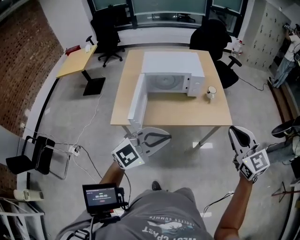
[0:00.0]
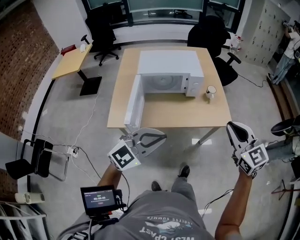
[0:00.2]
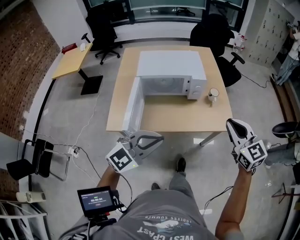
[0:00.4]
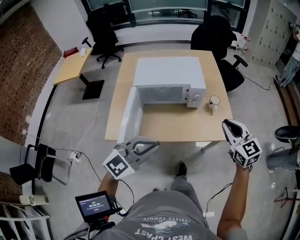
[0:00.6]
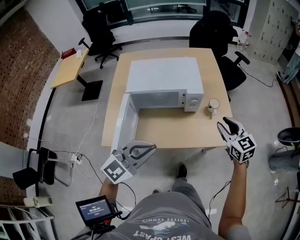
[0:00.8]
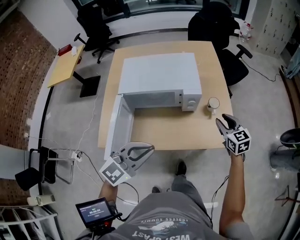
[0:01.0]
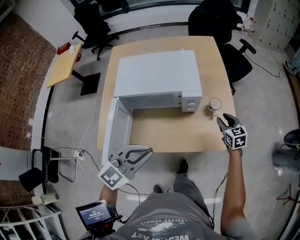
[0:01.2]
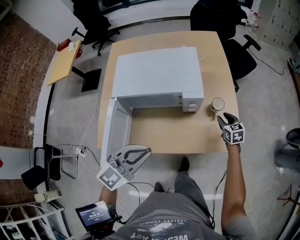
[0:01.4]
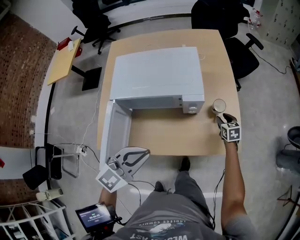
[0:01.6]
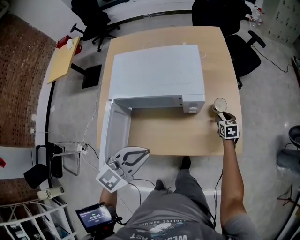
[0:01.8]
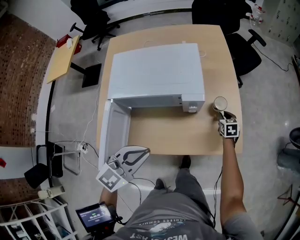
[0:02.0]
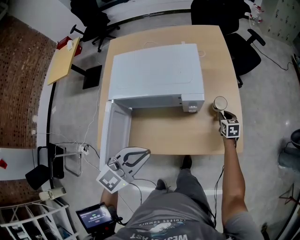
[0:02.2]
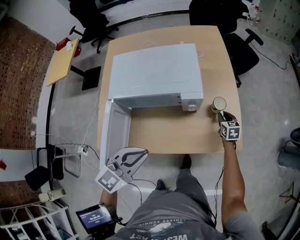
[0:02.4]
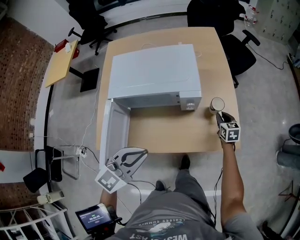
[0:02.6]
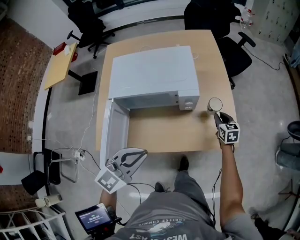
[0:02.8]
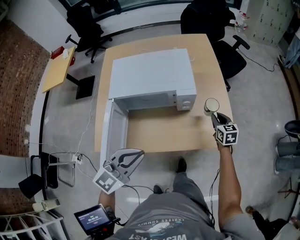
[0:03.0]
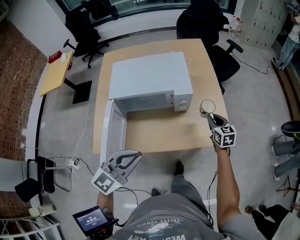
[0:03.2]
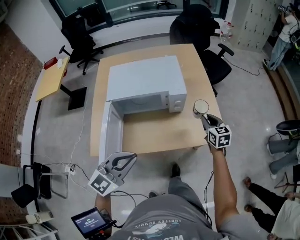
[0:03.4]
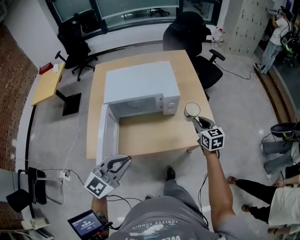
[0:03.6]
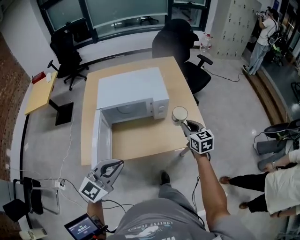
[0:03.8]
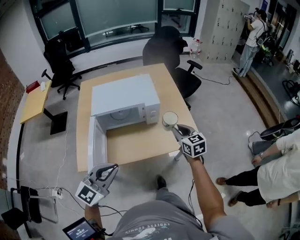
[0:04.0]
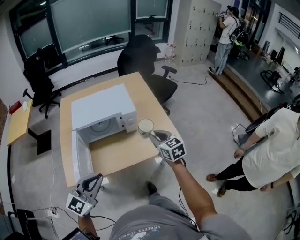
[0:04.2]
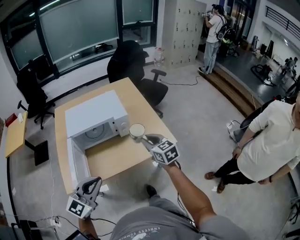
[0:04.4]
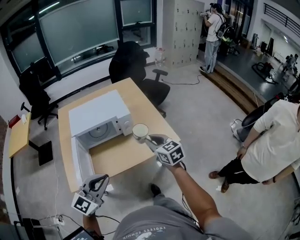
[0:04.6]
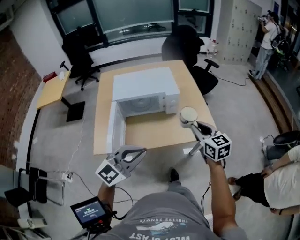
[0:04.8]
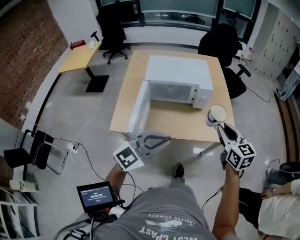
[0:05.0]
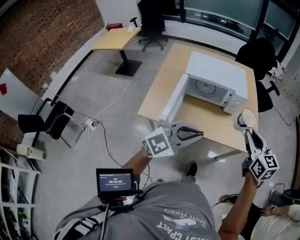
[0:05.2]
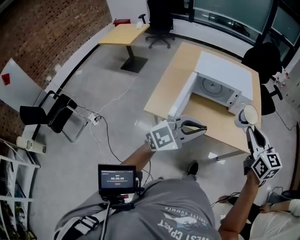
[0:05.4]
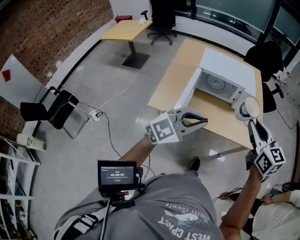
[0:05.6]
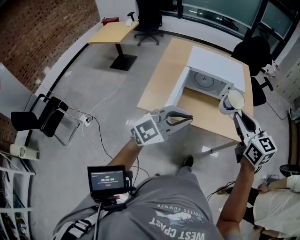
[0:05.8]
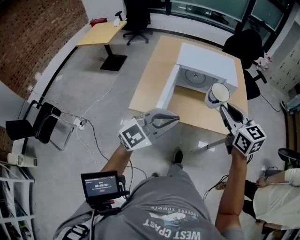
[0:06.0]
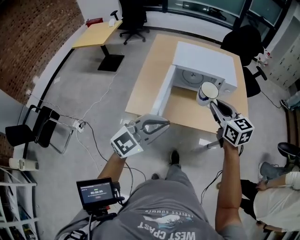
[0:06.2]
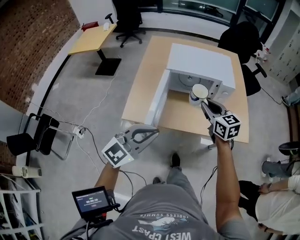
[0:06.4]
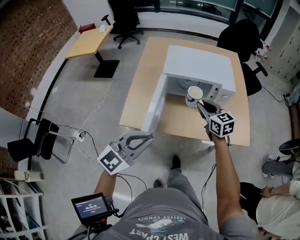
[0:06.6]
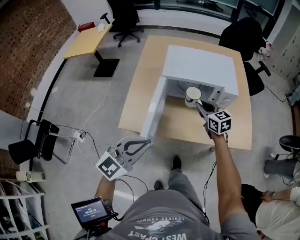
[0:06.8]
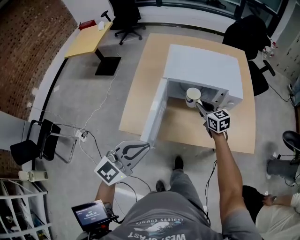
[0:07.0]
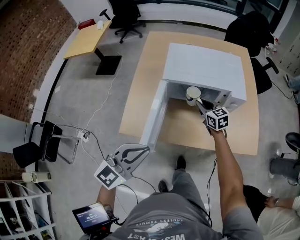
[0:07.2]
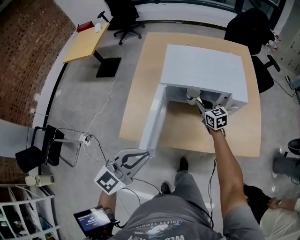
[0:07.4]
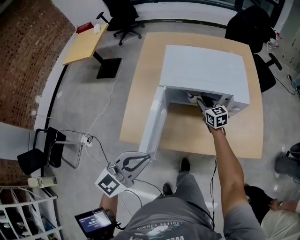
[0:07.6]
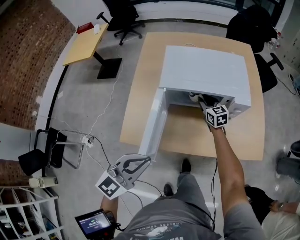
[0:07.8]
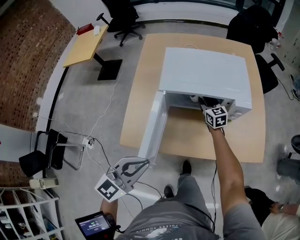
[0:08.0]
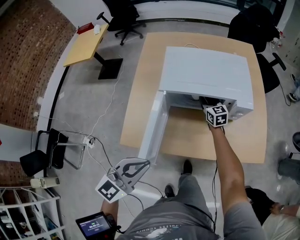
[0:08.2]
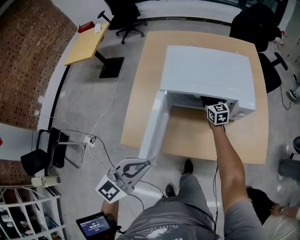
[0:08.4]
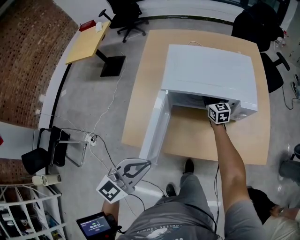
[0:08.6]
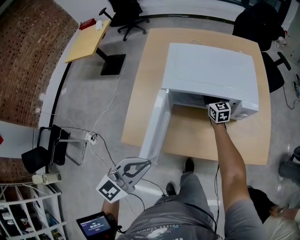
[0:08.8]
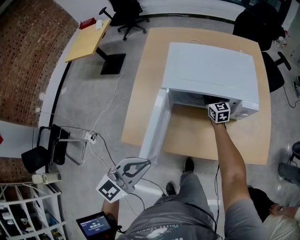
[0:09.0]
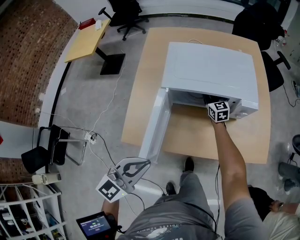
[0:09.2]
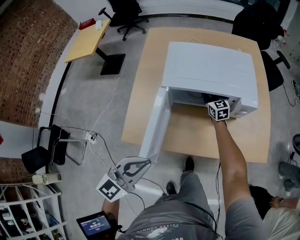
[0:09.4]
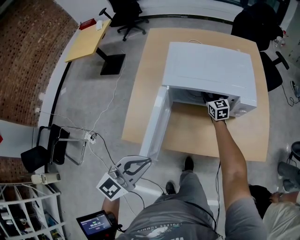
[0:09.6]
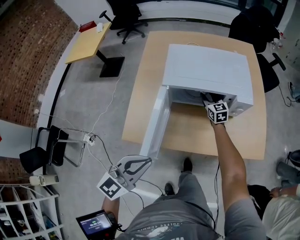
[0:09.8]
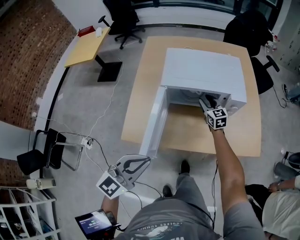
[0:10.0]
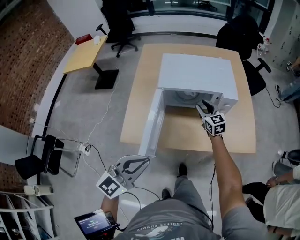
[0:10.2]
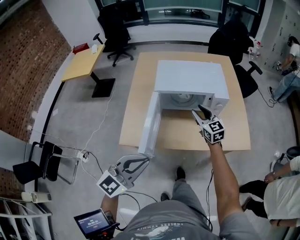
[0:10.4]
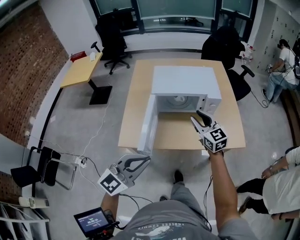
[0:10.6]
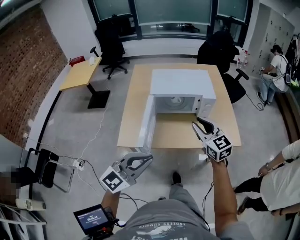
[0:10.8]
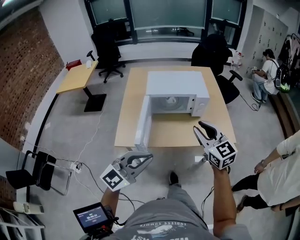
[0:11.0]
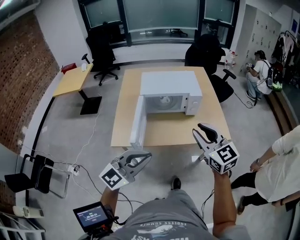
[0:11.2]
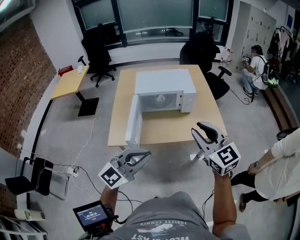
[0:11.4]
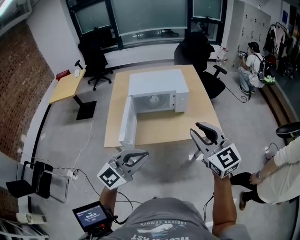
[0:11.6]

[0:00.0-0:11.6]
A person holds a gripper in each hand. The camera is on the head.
0:00.0 to 0:01.4: The right gripper heads forward and downward, covering approximately 60 cm, turns by about 40 degrees, and opens, while the left gripper is displaced forward by about 35 cm, and turns by approximately 20 degrees.
0:01.4 to 0:02.8: The right gripper moves roughly 10 cm downward and comes back.
0:02.8 to 0:04.4: The left gripper goes about 20 cm backward, while the right gripper travels backward and upward by some 35 cm.
0:04.4 to 0:05.8: The right gripper travels to the left, backward and upward by some 30 cm, and turns by some 20 degrees. The left gripper shifts some 15 cm backward and to the left.
0:05.8 to 0:07.2: The right gripper moves forward and downward, about 50 cm, while the left gripper goes about 15 cm forward and downward, and turns by roughly 20 degrees.
0:07.2 to 0:08.8: The left gripper ends up roughly 5 cm from where it was; the right gripper travels forward and downward by some 15 cm.
0:08.8 to 0:10.2: The left gripper heads backward and upward, covering roughly 10 cm. Meanwhile the right gripper is displaced backward and upward by about 15 cm, and opens up.
0:10.2 to 0:11.6: The right gripper heads backward, upward and to the right, covering some 60 cm. Meanwhile the left gripper is displaced backward, to the right and upward by approximately 25 cm, and turns by roughly 20 degrees.

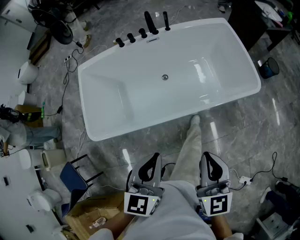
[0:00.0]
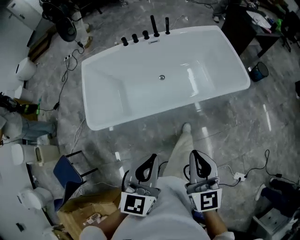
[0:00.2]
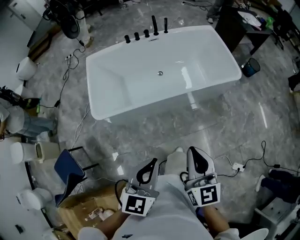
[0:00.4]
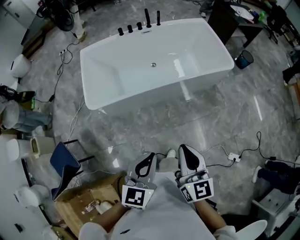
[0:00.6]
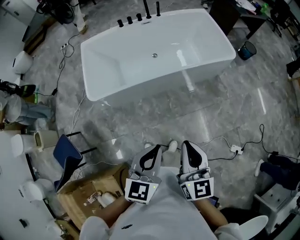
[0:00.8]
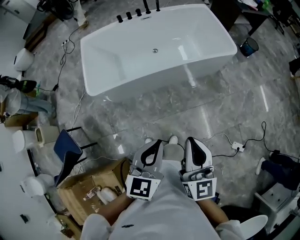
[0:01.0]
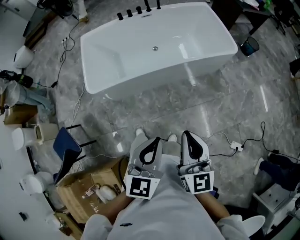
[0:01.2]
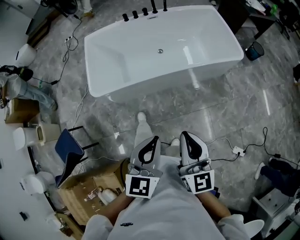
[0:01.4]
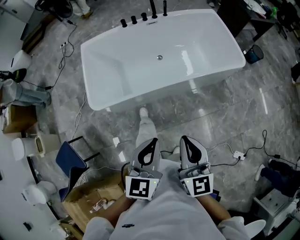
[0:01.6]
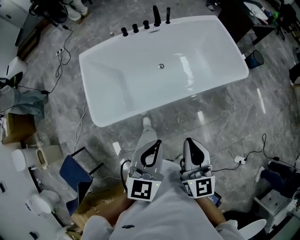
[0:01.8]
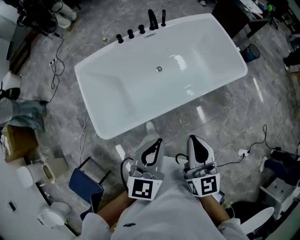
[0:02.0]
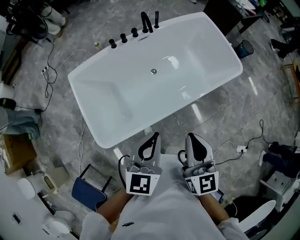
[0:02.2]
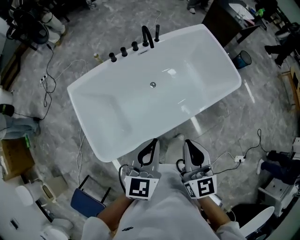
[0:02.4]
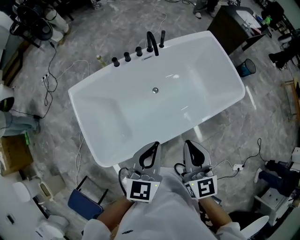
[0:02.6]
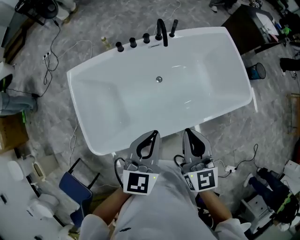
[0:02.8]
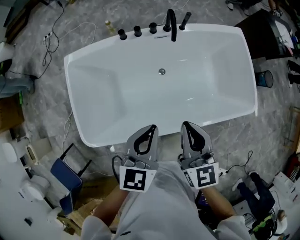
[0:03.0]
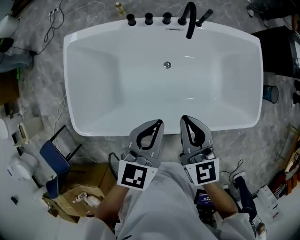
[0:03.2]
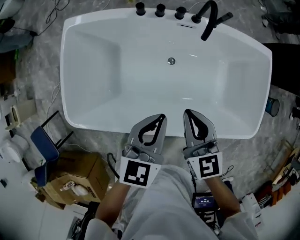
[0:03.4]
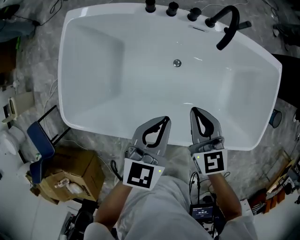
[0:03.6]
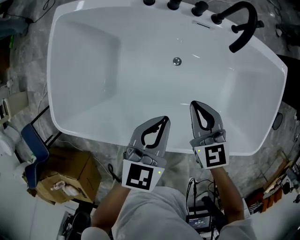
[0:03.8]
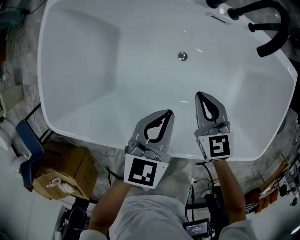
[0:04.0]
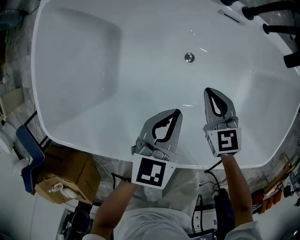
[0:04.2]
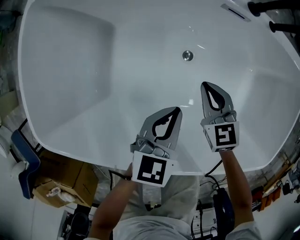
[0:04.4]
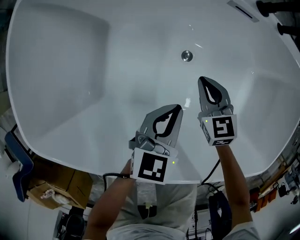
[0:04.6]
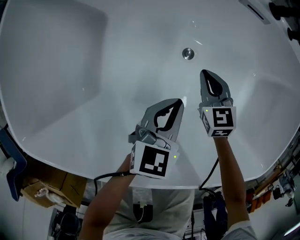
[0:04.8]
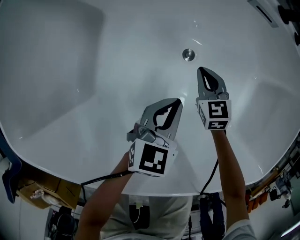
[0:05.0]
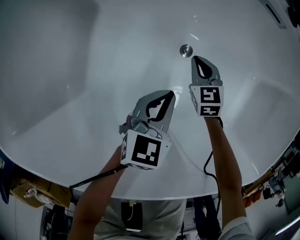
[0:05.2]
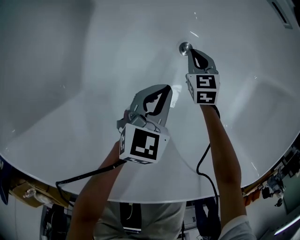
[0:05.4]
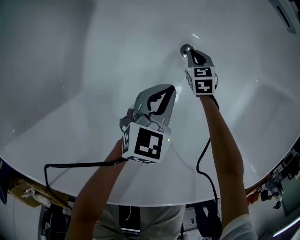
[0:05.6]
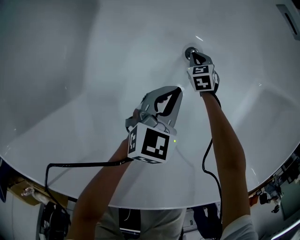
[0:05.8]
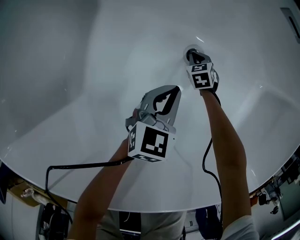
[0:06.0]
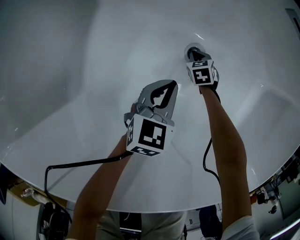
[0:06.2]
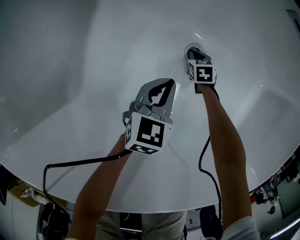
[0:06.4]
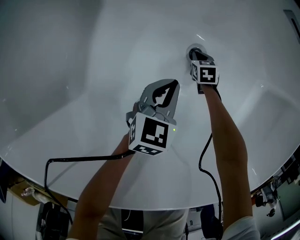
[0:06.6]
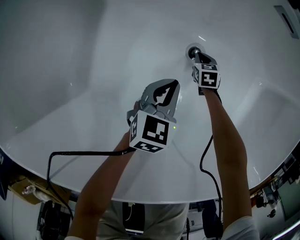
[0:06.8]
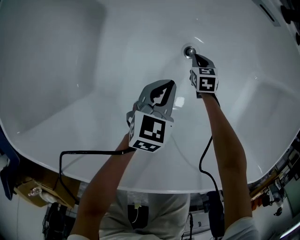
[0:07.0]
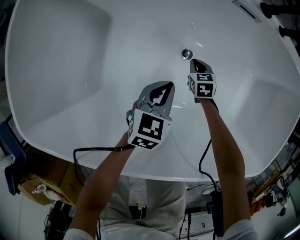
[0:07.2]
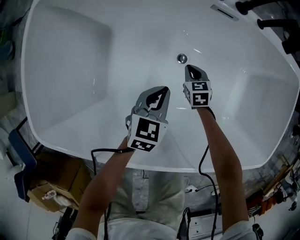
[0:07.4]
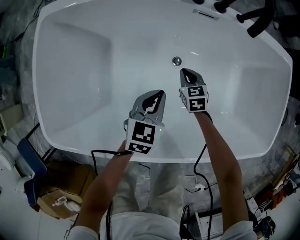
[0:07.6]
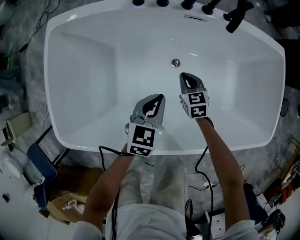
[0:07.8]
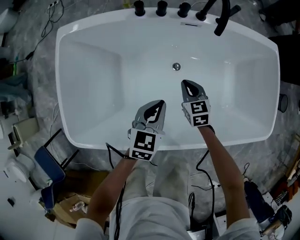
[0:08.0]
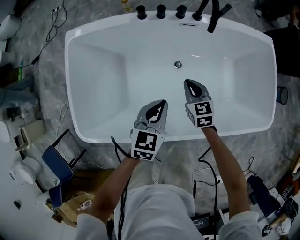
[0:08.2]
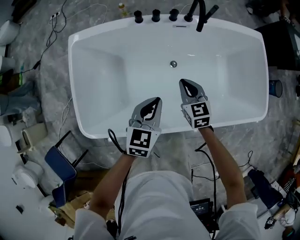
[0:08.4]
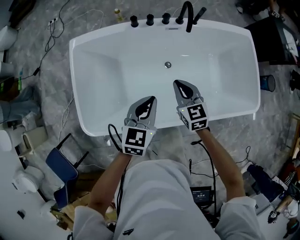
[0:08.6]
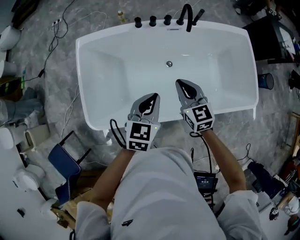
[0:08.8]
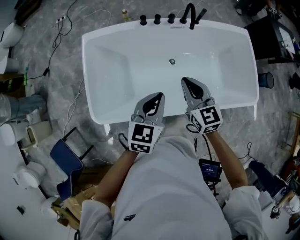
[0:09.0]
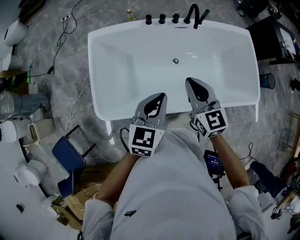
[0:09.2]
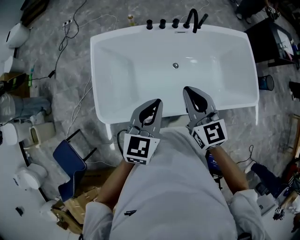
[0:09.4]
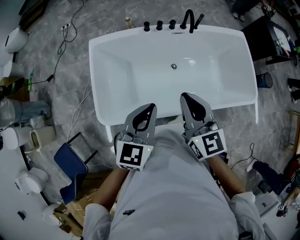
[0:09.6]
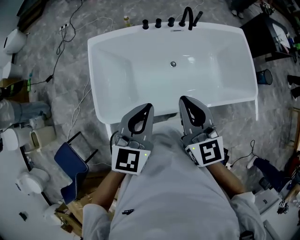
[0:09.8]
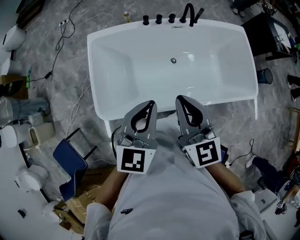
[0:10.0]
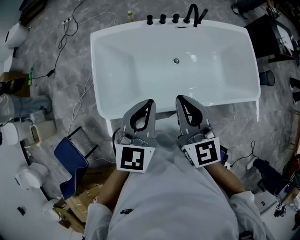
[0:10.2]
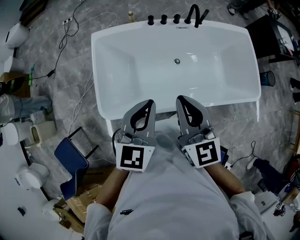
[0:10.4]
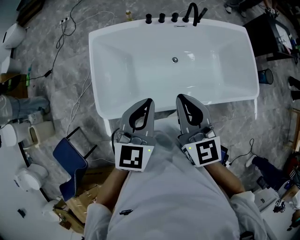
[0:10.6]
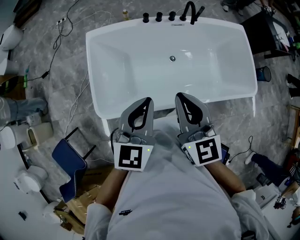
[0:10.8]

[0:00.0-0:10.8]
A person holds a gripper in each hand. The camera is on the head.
0:00.0 to 0:01.6: The left gripper is displaced backward by some 20 cm; the right gripper moves backward and to the left, roughly 25 cm.
0:01.6 to 0:03.0: Both grippers are carried forward, some 50 cm.
0:03.0 to 0:04.6: The grippers both shift downward by some 50 cm. The right gripper swivels roughly 40 degrees.
0:04.6 to 0:06.2: The right gripper travels downward by some 40 cm, and points its fingers about 30 degrees further downward, while the left gripper shifts roughly 25 cm downward.
0:06.2 to 0:07.8: The two grippers go roughly 35 cm upward. The right gripper changes its angle by some 30 degrees.
0:07.8 to 0:09.2: Both grippers move upward and backward, approximately 50 cm. The right gripper turns by about 30 degrees.
0:09.2 to 0:10.8: The left gripper shifts roughly 10 cm upward and to the left. Meanwhile the right gripper heads upward, backward and to the left, covering roughly 15 cm.

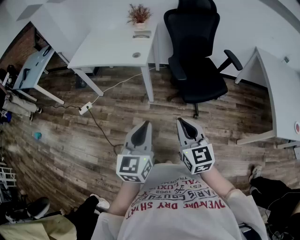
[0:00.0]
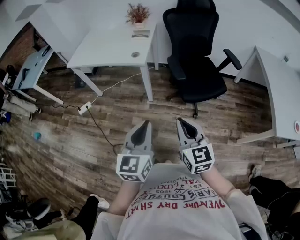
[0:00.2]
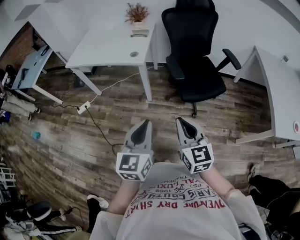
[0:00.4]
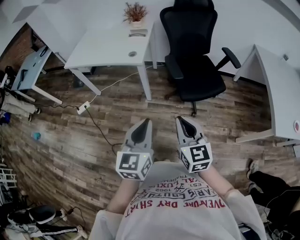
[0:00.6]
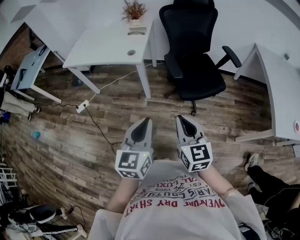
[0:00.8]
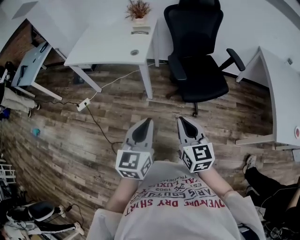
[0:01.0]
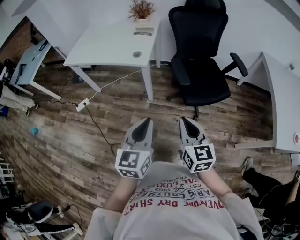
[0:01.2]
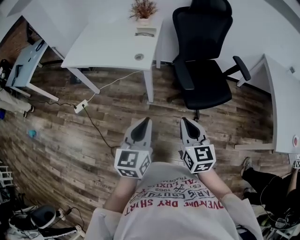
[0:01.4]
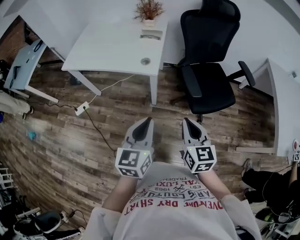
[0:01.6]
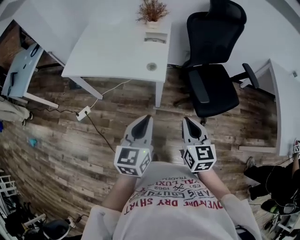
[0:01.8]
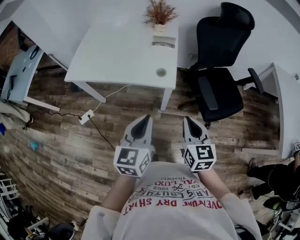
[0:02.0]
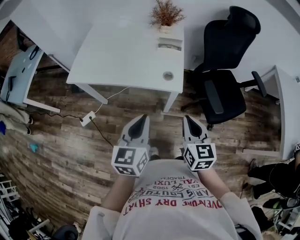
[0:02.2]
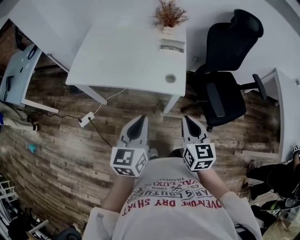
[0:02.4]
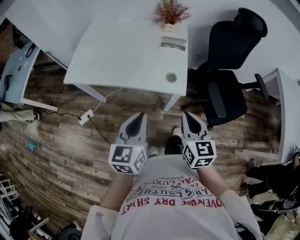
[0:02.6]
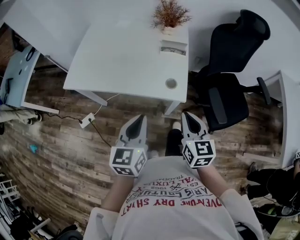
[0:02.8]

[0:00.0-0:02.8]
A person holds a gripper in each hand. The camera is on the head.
0:00.0 to 0:01.4: Both grippers travel together forward, about 15 cm.
0:01.4 to 0:02.8: The grippers both shift forward and to the left by approximately 35 cm.
